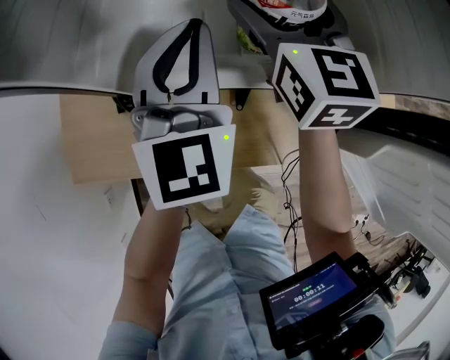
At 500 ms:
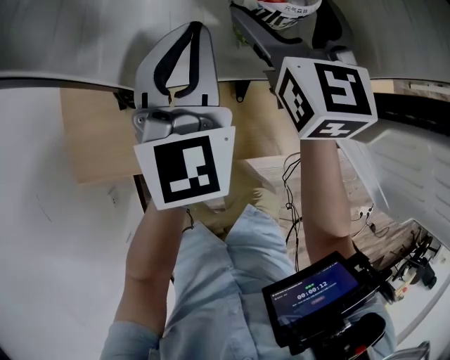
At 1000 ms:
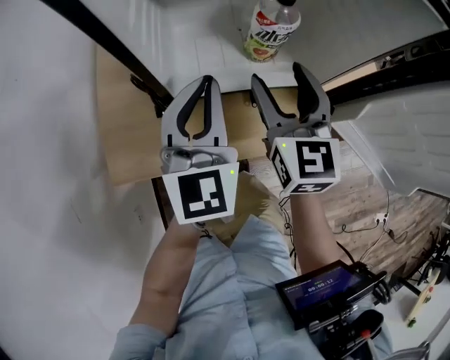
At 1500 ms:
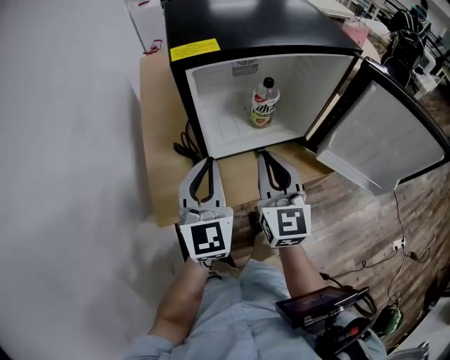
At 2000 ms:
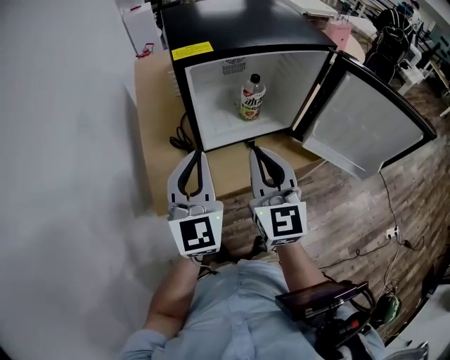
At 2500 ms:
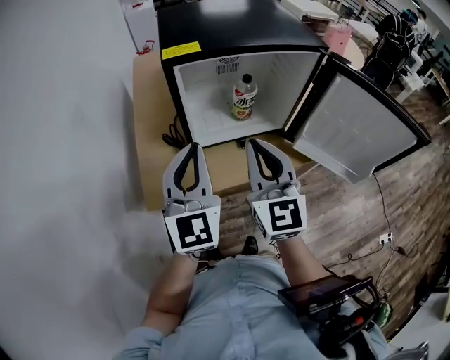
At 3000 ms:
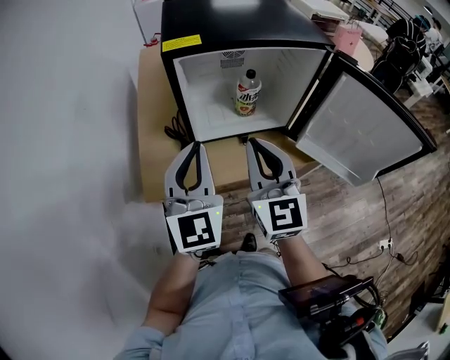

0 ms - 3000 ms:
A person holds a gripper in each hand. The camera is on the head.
0 ms - 1500 ms: The right gripper moves backward, some 25 cm, rotates some 20 degrees, and closes, while the left gripper is displaced backward, upward and to the left by about 25 cm.
1500 ms - 3000 ms: Both grippers move upward and backward, about 10 cm.

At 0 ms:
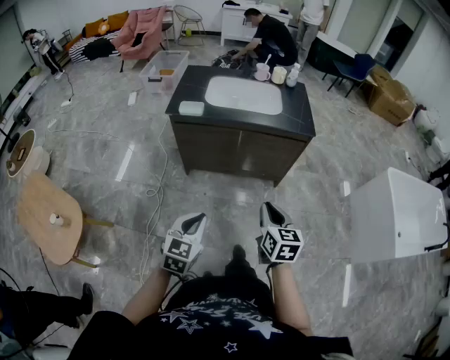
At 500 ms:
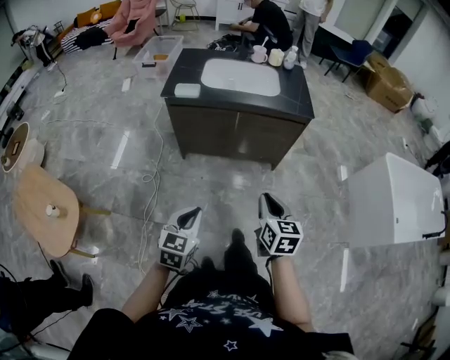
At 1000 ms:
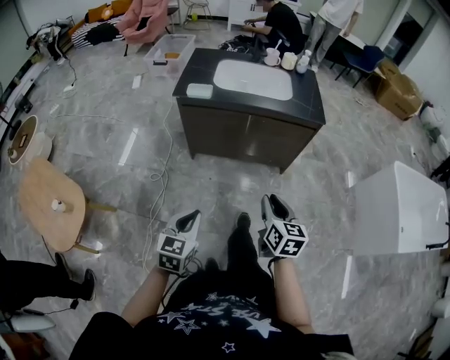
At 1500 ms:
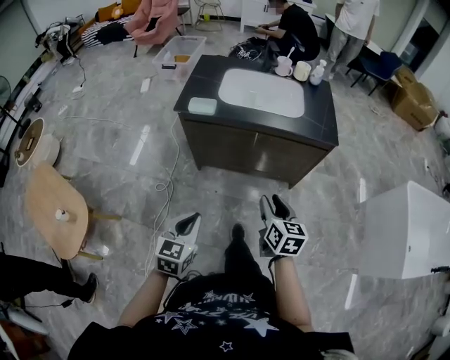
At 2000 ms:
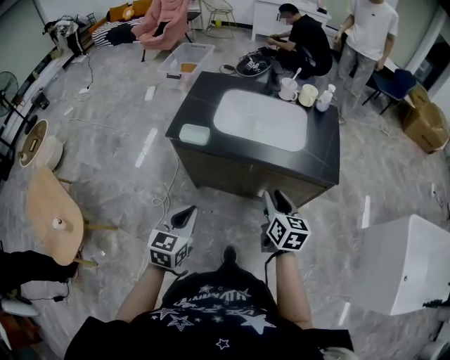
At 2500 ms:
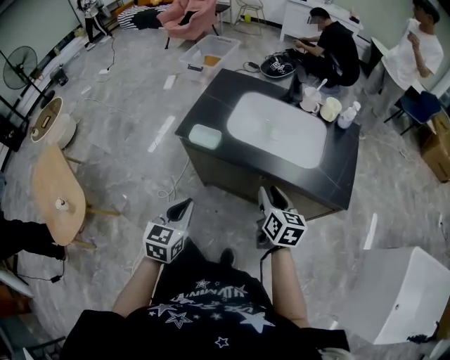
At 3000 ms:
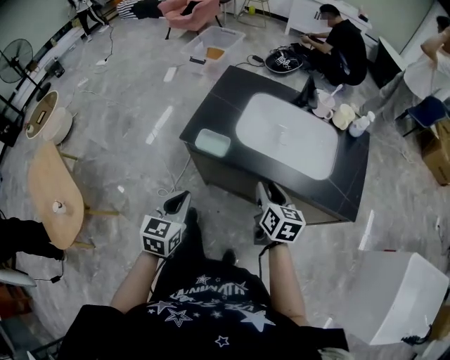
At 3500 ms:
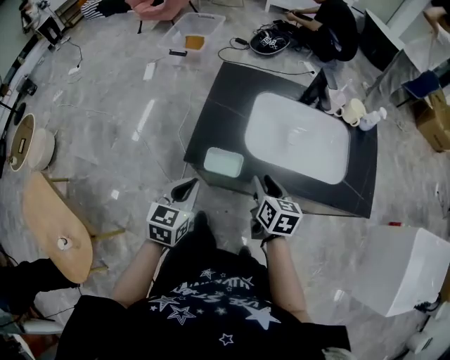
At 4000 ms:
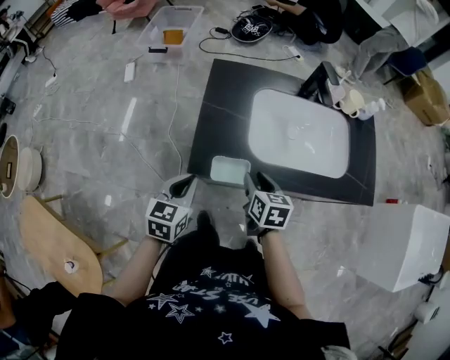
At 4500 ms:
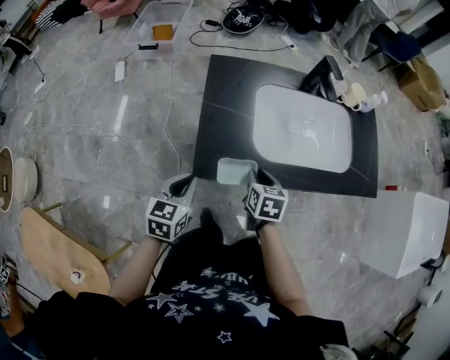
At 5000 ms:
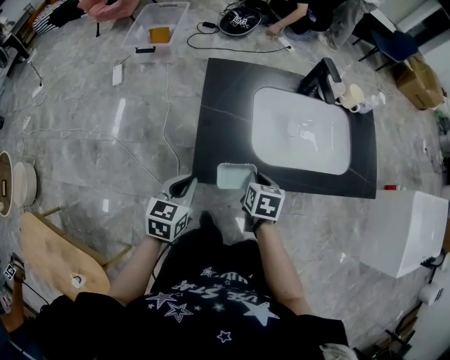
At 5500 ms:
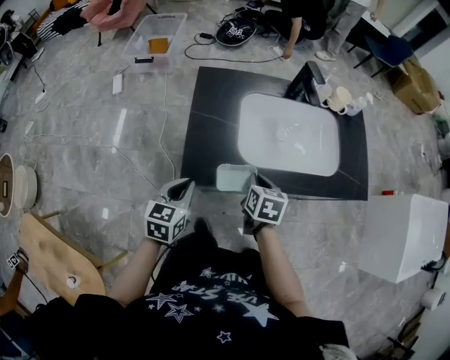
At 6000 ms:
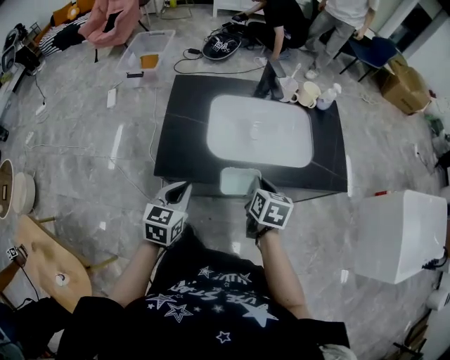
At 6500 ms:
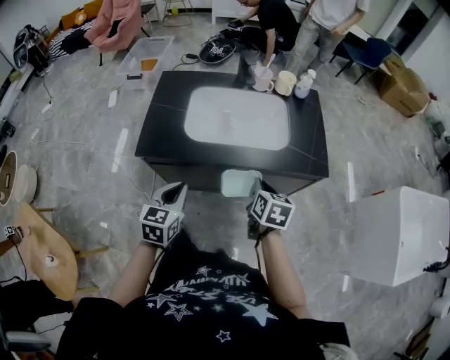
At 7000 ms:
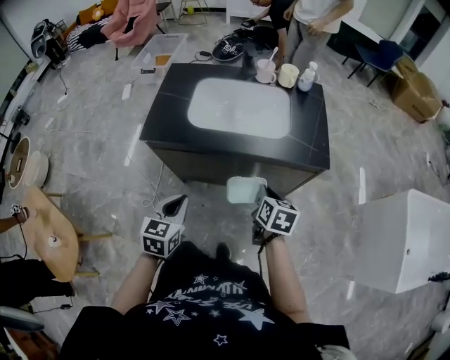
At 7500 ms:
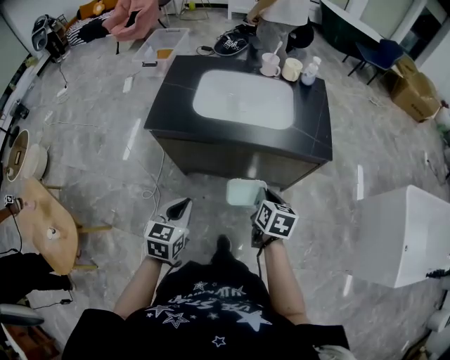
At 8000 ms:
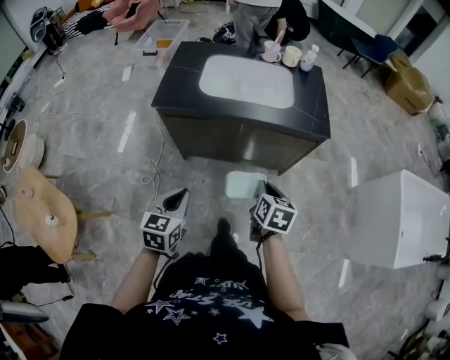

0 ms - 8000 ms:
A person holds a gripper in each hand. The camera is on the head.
0 ms - 2000 ms: The two grippers go roughly 25 cm forward. The right gripper opens up.
2000 ms - 4000 ms: The right gripper heads to the left and forward, covering approximately 35 cm. The left gripper goes roughly 35 cm forward and to the left.
4000 ms - 6000 ms: Both grippers move to the right, some 15 cm. The right gripper closes its fingers.
6000 ms - 8000 ms: The left gripper moves backward, roughly 30 cm. Meanwhile the right gripper moves backward and to the right, roughly 30 cm.

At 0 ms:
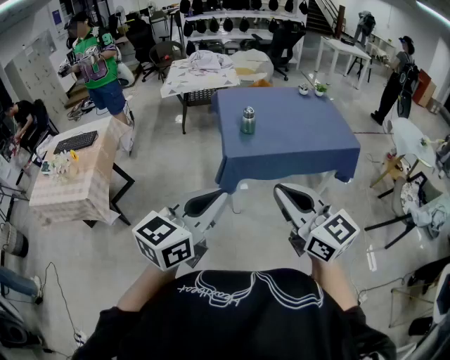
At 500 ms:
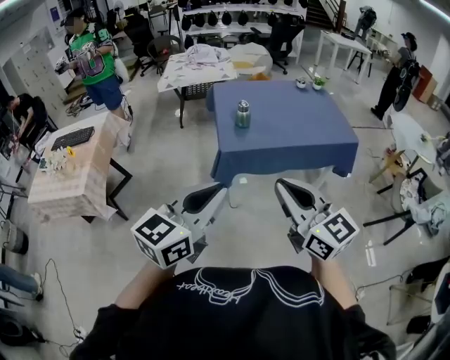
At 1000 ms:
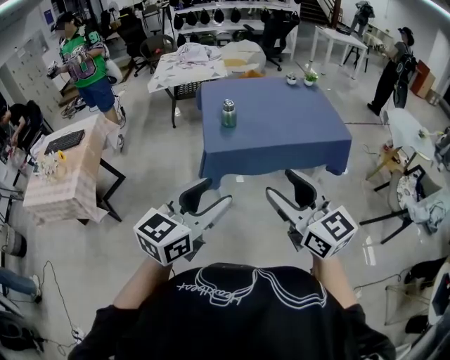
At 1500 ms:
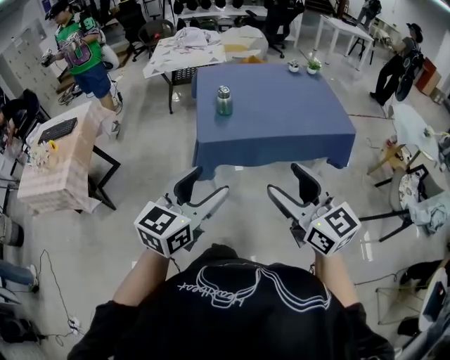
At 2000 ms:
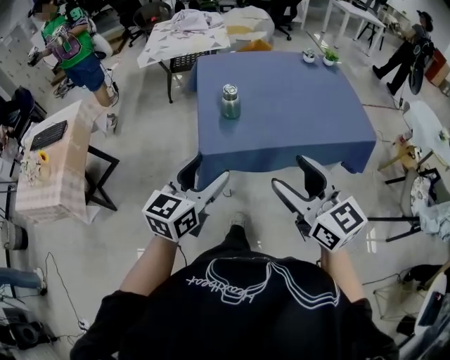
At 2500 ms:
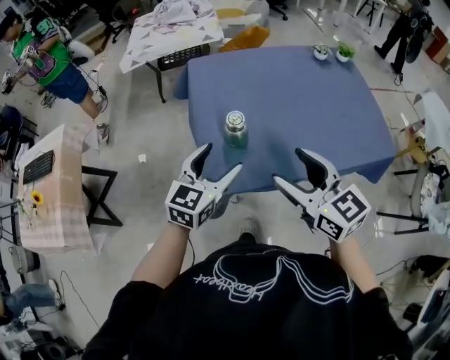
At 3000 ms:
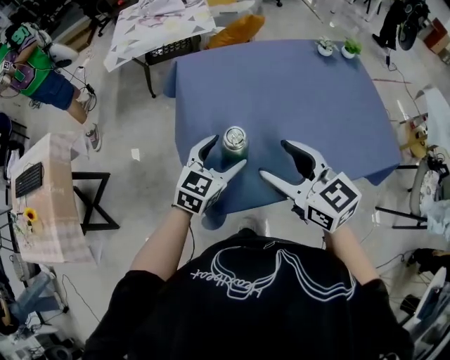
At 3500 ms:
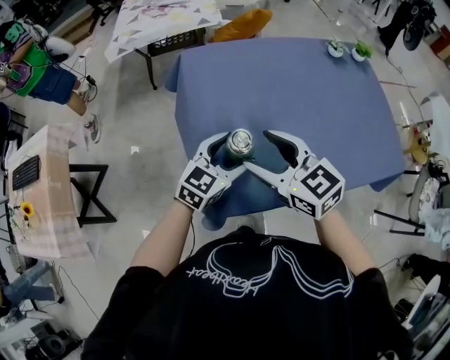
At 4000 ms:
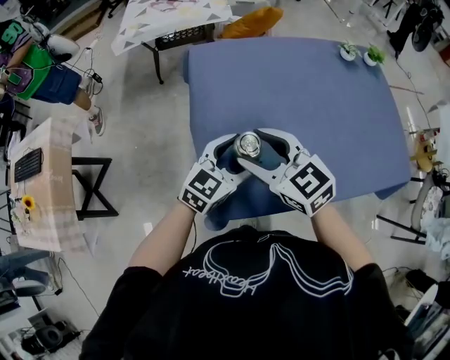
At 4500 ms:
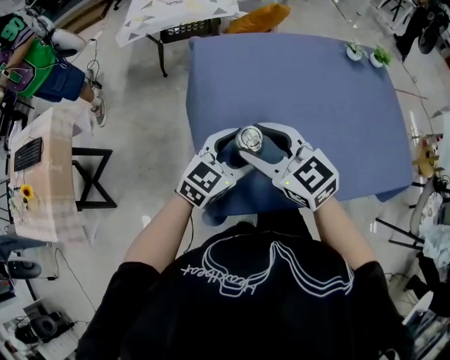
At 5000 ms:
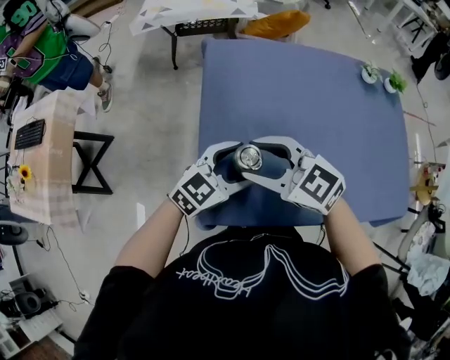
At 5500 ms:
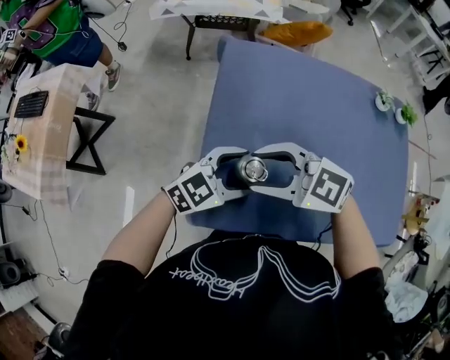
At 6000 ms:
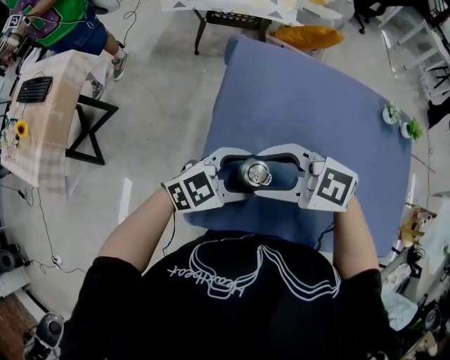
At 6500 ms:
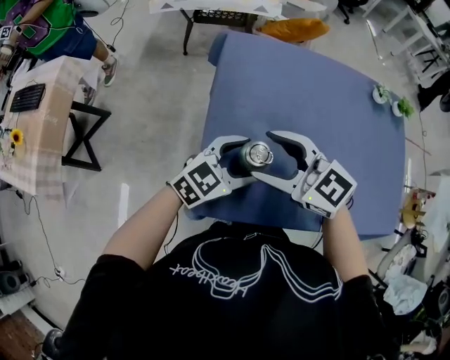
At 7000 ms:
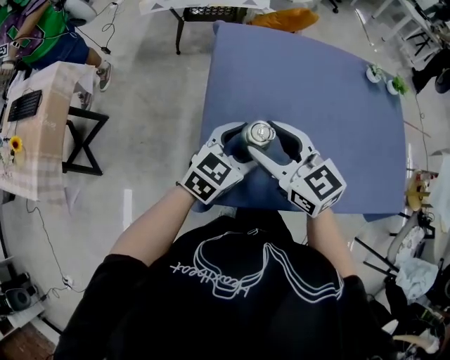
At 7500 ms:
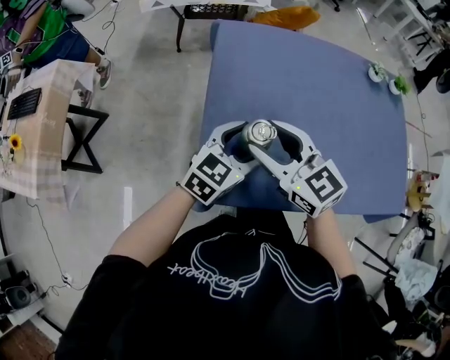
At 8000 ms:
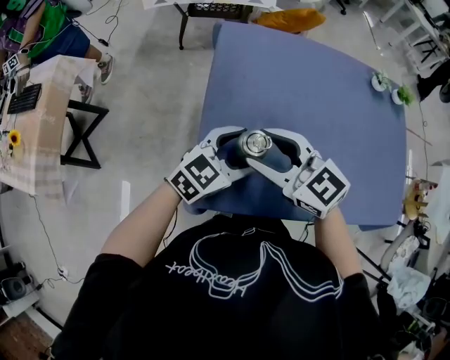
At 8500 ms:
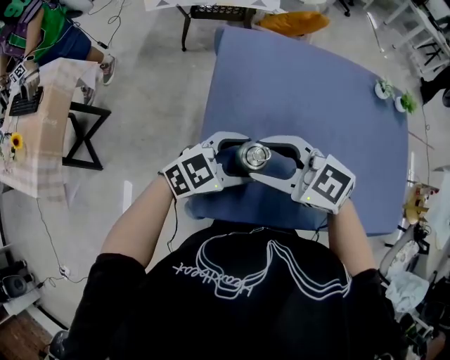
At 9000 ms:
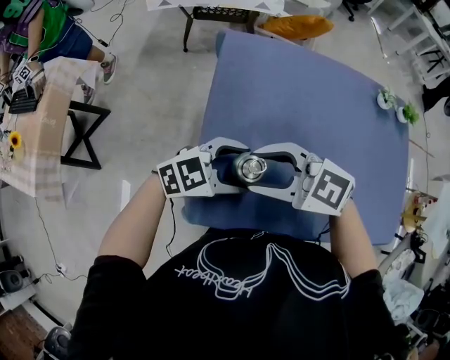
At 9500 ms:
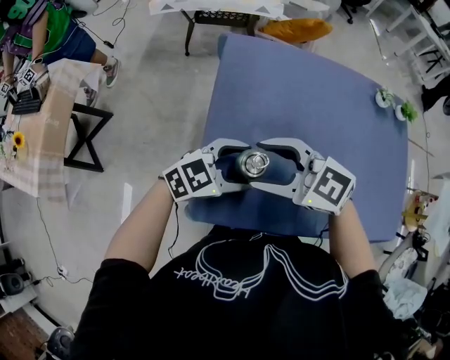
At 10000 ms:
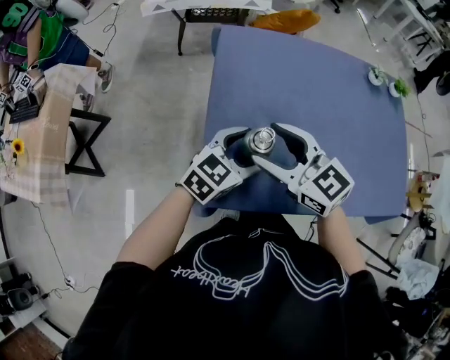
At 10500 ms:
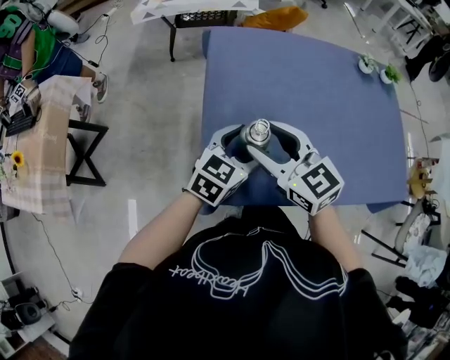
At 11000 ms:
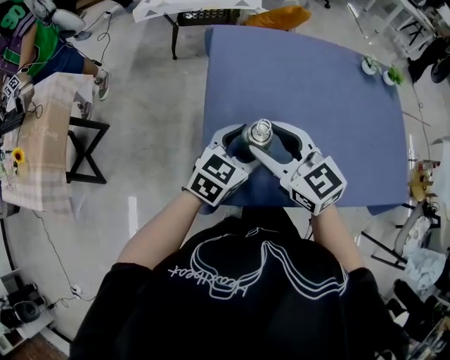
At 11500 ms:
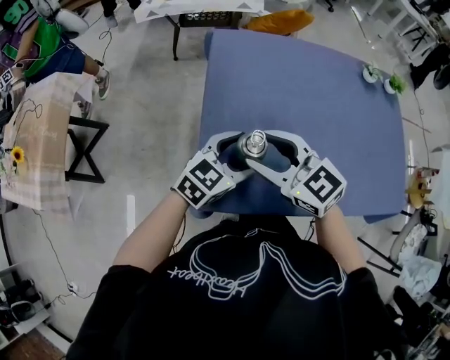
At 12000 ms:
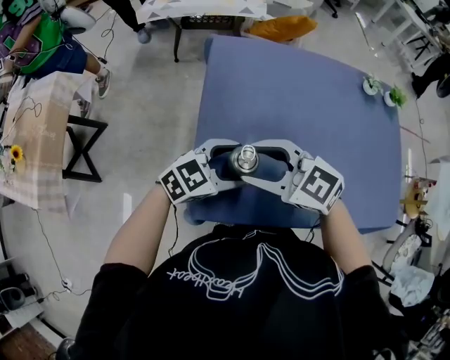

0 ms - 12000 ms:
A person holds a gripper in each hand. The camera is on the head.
0 ms - 2000 ms: The left gripper goes some 30 cm forward and downward, and opens up. Meanwhile the right gripper goes approximately 25 cm forward, to the right and downward, and opens.
2000 ms - 4000 ms: The left gripper goes roughly 30 cm forward and downward, and changes its angle by about 20 degrees. Meanwhile the right gripper heads forward, covering approximately 30 cm, and turns by roughly 20 degrees.
4000 ms - 6000 ms: The right gripper rotates about 50 degrees.
6000 ms - 8000 ms: The right gripper turns by approximately 30 degrees.
10000 ms - 12000 ms: The right gripper rotates roughly 20 degrees.

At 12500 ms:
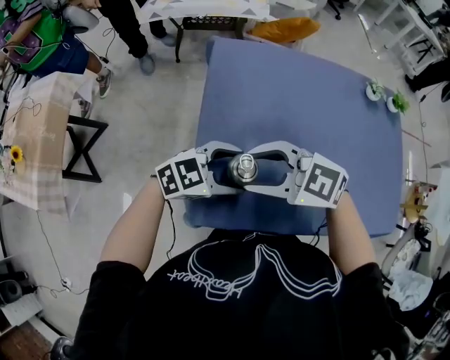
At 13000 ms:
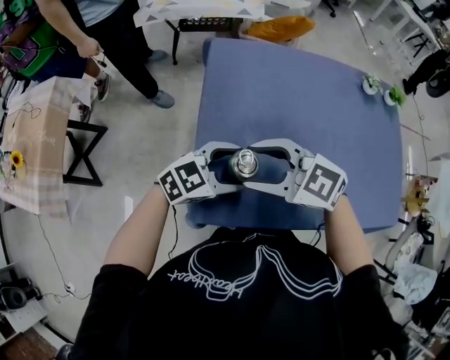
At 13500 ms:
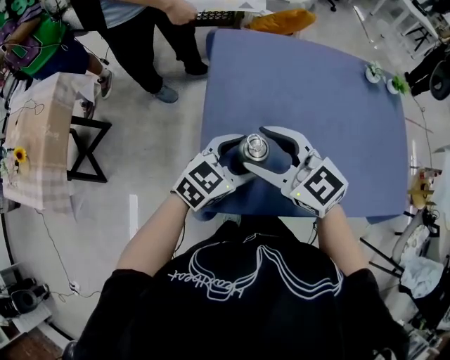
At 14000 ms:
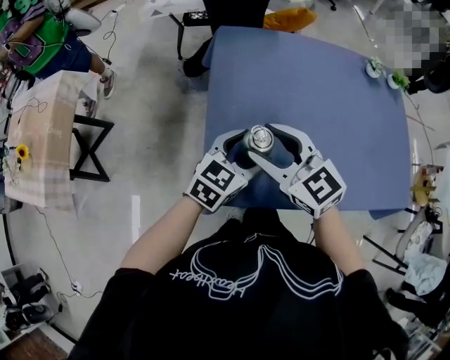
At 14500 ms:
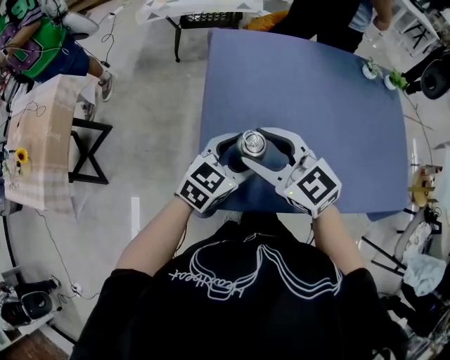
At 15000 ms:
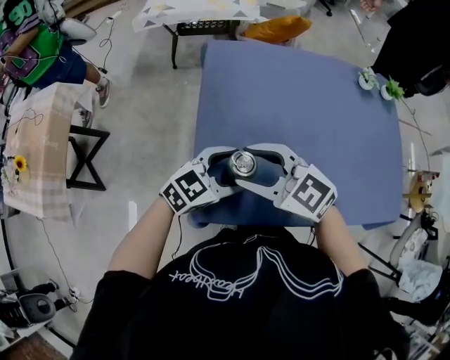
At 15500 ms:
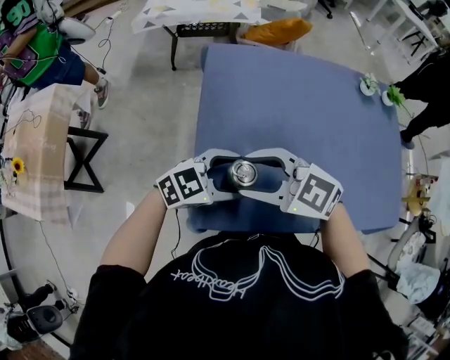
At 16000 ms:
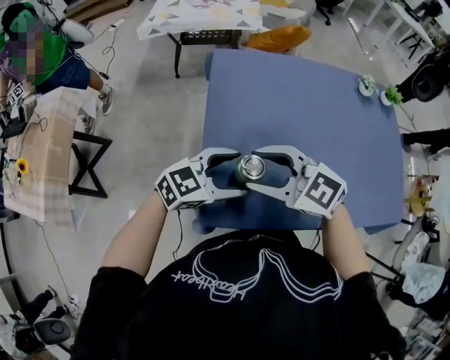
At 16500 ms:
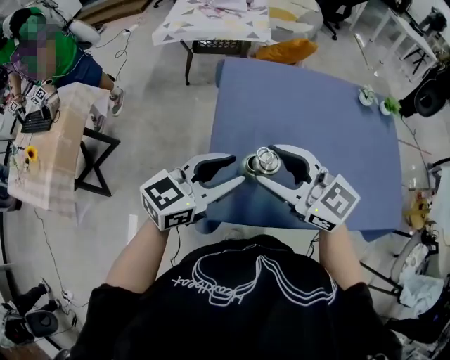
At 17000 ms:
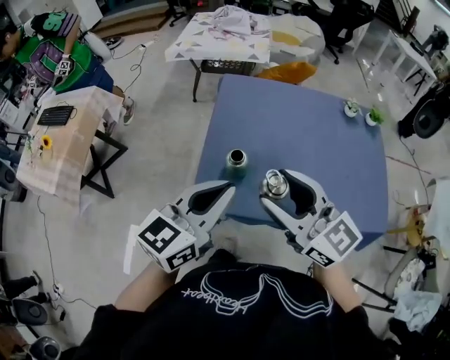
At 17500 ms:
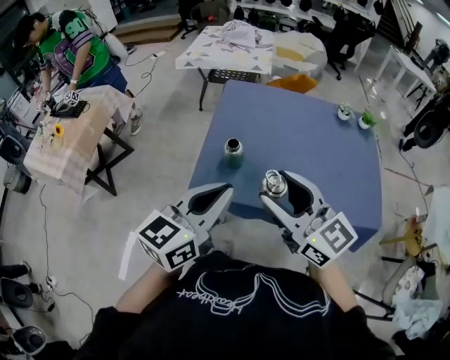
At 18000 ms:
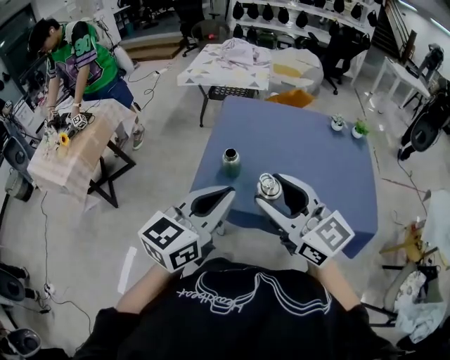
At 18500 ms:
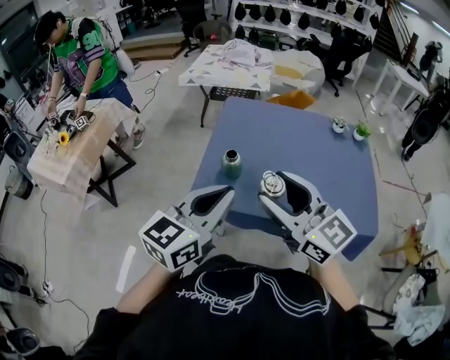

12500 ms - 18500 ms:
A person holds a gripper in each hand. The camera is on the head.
12500 ms - 14500 ms: The right gripper changes its angle by some 30 degrees; the left gripper swivels about 30 degrees.
14500 ms - 16500 ms: The left gripper goes roughly 10 cm upward, and closes its fingers. Meanwhile the right gripper travels upward by roughly 5 cm.
16500 ms - 18500 ms: The right gripper moves backward, upward and to the right, some 20 cm. The left gripper heads backward and upward, covering some 20 cm, swivels some 30 degrees, and closes its fingers.
